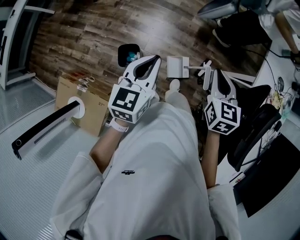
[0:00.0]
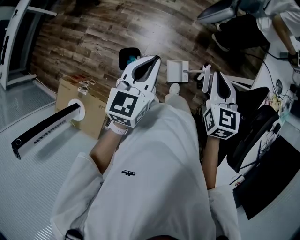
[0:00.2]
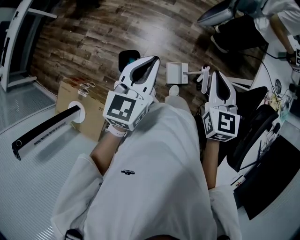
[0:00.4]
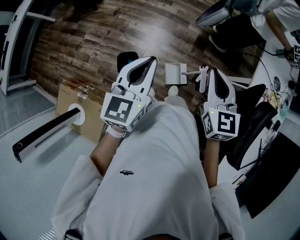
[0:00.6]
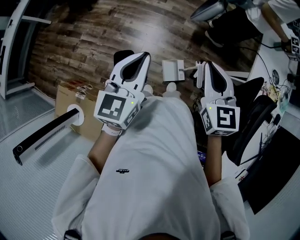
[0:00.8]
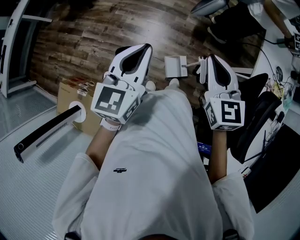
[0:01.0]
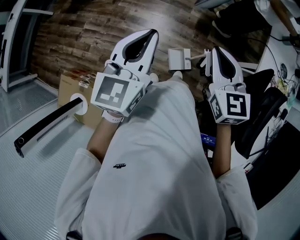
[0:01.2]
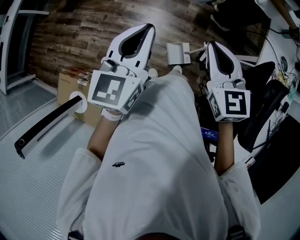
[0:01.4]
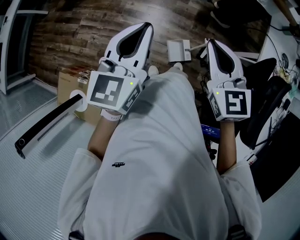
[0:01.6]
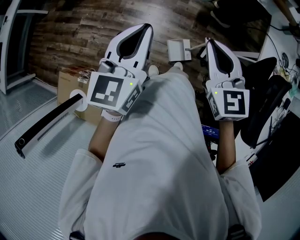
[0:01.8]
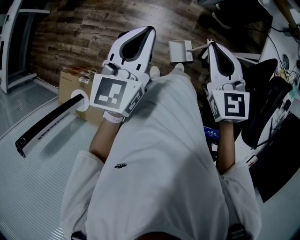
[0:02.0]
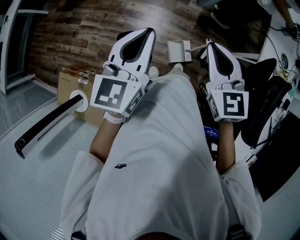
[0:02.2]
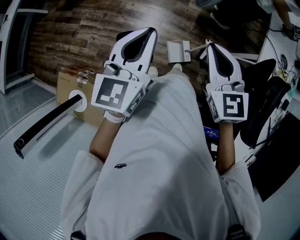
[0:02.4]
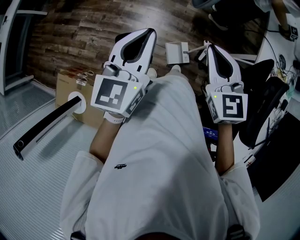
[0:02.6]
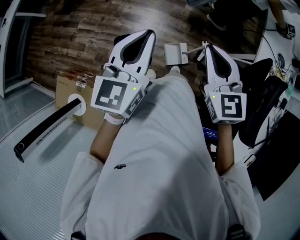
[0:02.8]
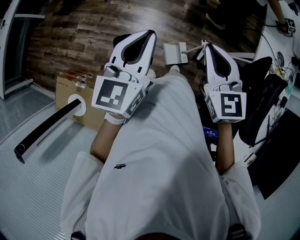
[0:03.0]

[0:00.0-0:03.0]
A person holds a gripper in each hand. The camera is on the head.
0.0 to 1.6 s: The right gripper is displaced upward and to the left by approximately 10 cm, and rotates roughly 20 degrees. Meanwhile the left gripper goes about 10 cm upward.
1.6 to 3.0 s: The grippers make only small movements.

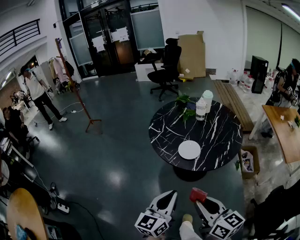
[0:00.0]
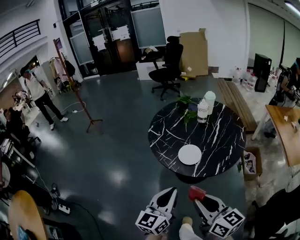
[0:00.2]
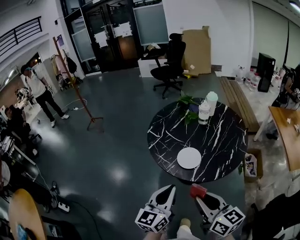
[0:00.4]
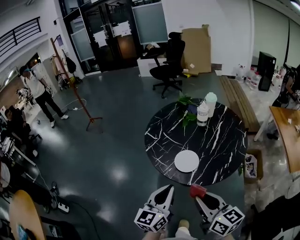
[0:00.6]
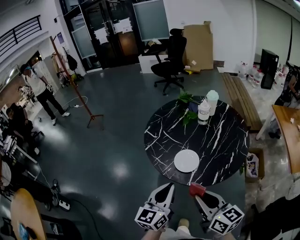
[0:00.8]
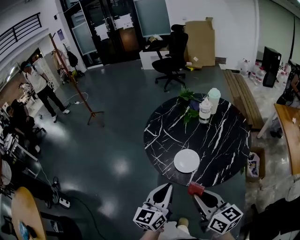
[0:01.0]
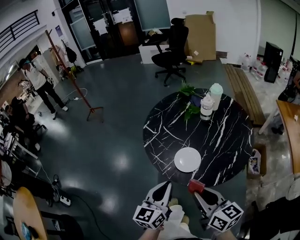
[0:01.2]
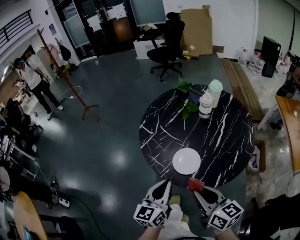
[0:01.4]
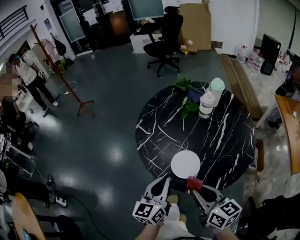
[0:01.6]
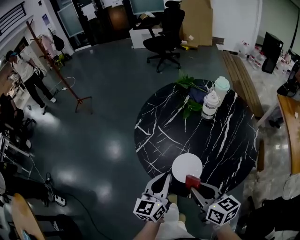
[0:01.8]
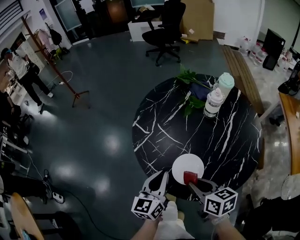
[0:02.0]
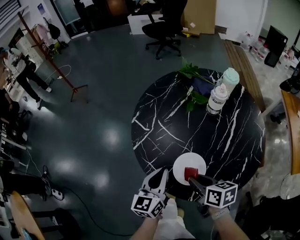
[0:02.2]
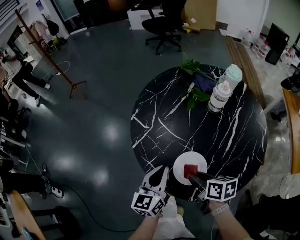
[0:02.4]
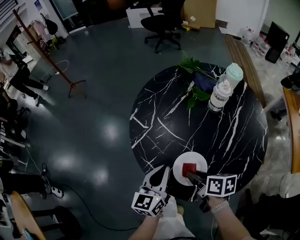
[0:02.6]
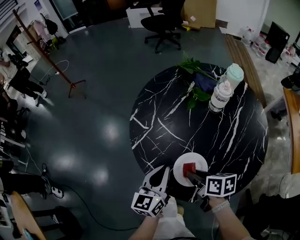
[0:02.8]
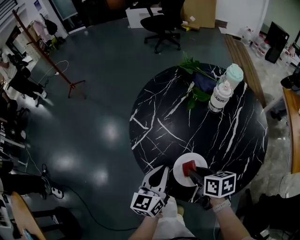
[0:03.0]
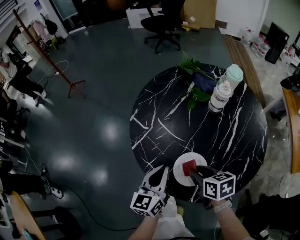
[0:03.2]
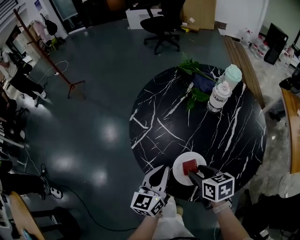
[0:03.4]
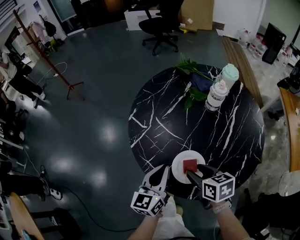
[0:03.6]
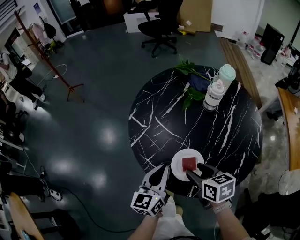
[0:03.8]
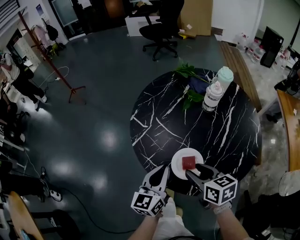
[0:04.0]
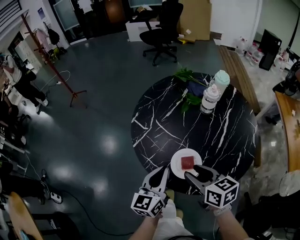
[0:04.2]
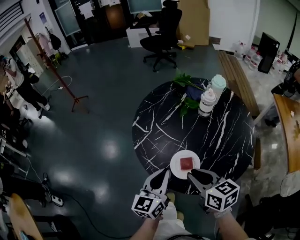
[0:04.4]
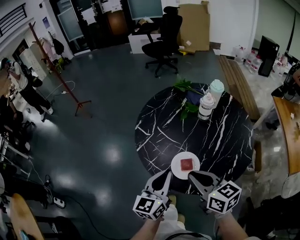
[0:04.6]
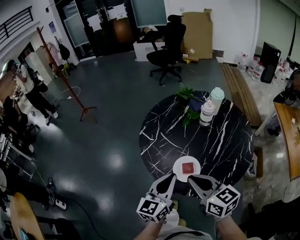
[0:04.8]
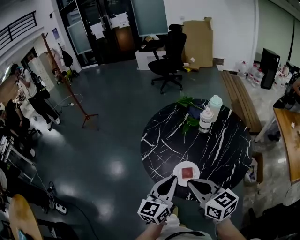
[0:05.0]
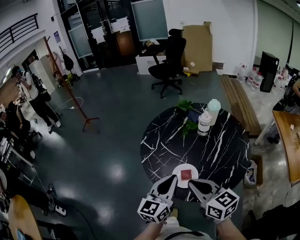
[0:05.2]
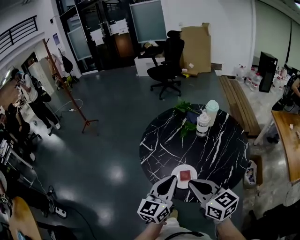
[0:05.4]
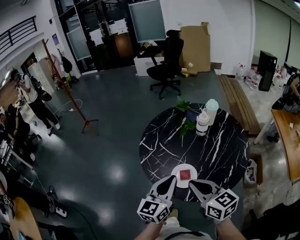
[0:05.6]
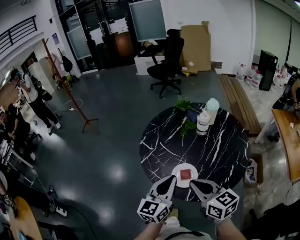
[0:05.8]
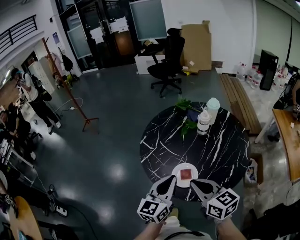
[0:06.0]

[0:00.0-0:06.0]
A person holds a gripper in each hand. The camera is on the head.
0.0 to 1.6 s: The two grippers go about 25 cm forward.
1.6 to 3.0 s: The right gripper goes approximately 20 cm downward and forward, and changes its angle by approximately 30 degrees. The left gripper travels forward and downward by roughly 15 cm.
3.0 to 4.4 s: Both grippers travel together upward and backward, about 10 cm. The right gripper turns by about 30 degrees, and opens and closes again.
4.4 to 6.0 s: The two grippers go some 10 cm upward.

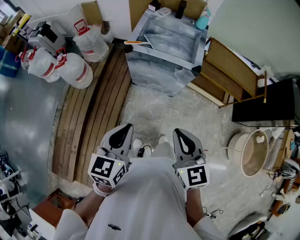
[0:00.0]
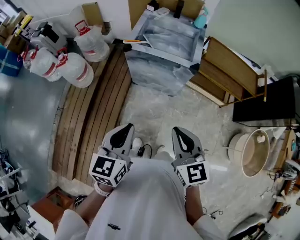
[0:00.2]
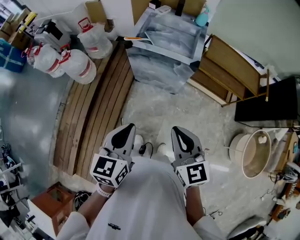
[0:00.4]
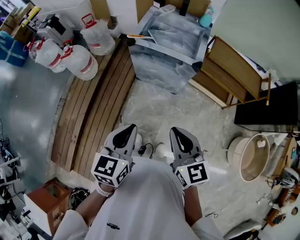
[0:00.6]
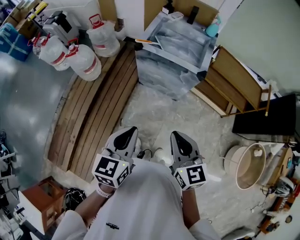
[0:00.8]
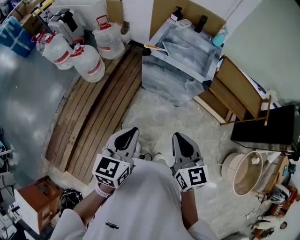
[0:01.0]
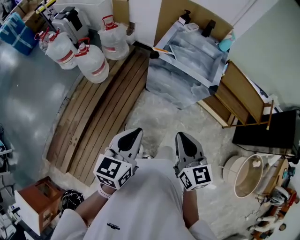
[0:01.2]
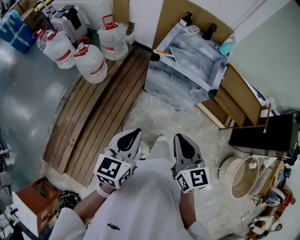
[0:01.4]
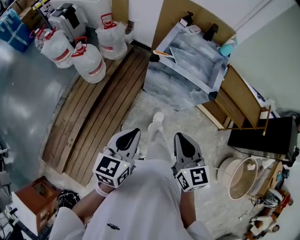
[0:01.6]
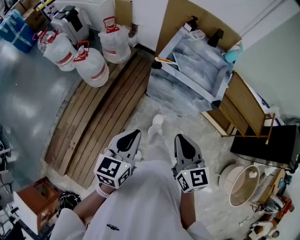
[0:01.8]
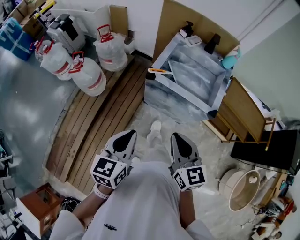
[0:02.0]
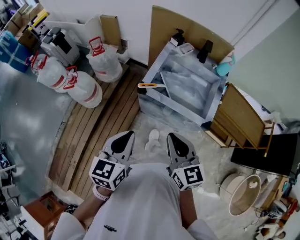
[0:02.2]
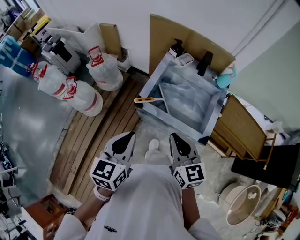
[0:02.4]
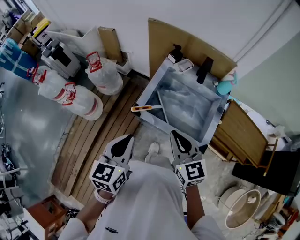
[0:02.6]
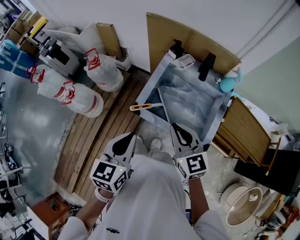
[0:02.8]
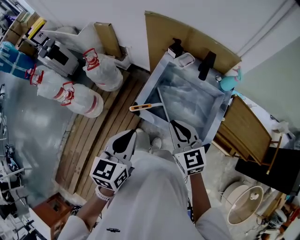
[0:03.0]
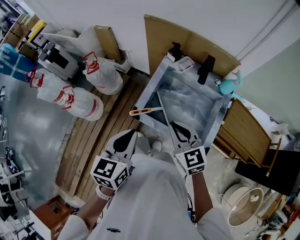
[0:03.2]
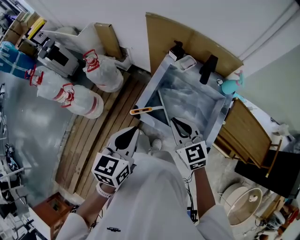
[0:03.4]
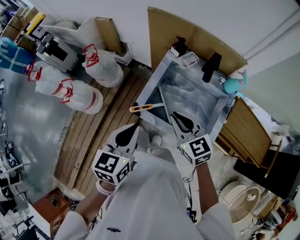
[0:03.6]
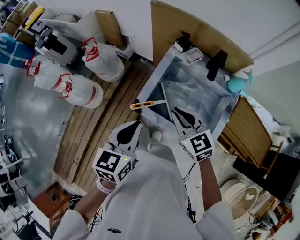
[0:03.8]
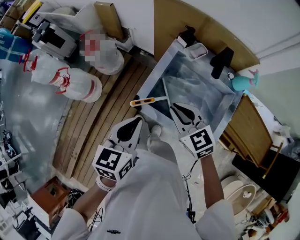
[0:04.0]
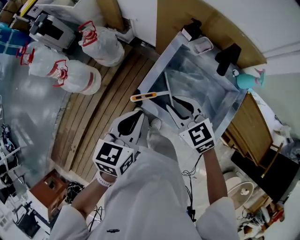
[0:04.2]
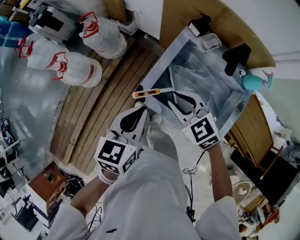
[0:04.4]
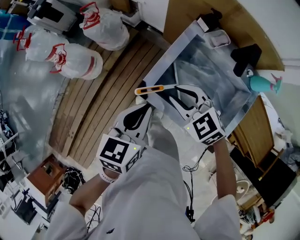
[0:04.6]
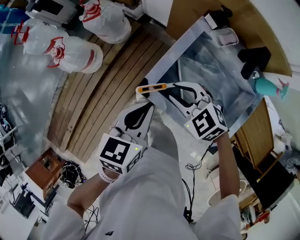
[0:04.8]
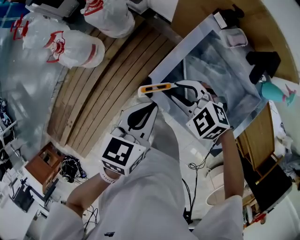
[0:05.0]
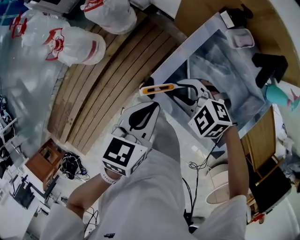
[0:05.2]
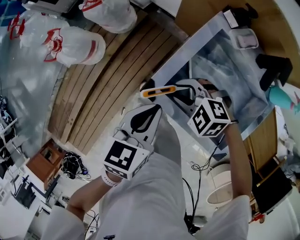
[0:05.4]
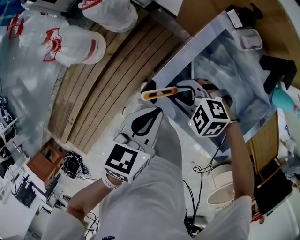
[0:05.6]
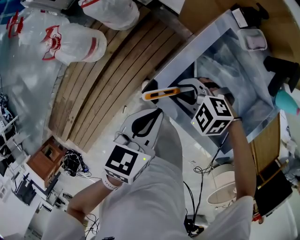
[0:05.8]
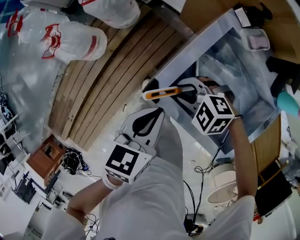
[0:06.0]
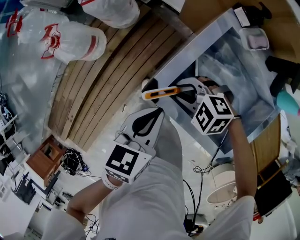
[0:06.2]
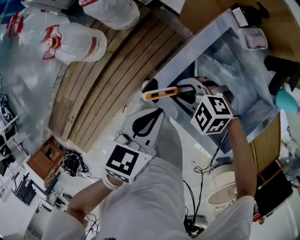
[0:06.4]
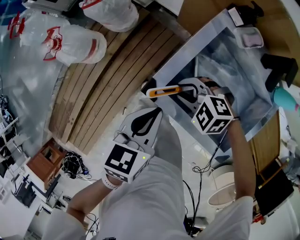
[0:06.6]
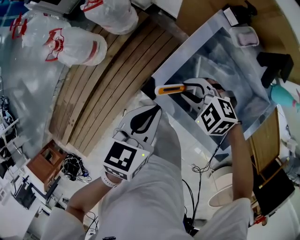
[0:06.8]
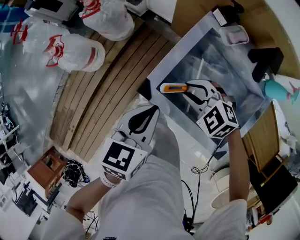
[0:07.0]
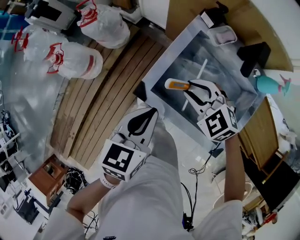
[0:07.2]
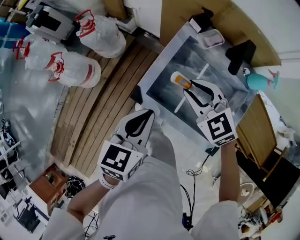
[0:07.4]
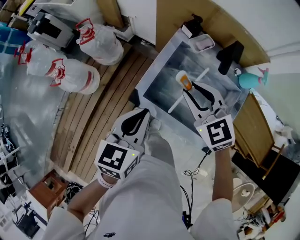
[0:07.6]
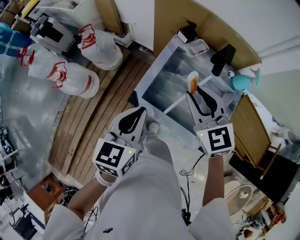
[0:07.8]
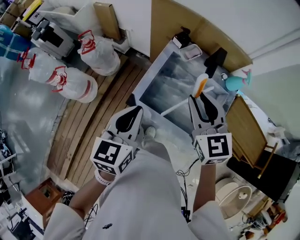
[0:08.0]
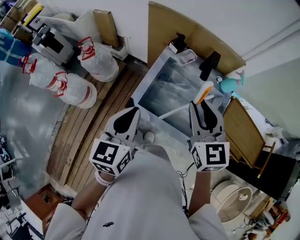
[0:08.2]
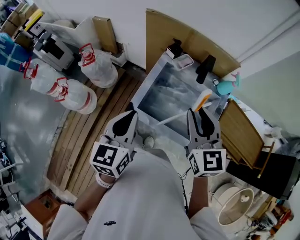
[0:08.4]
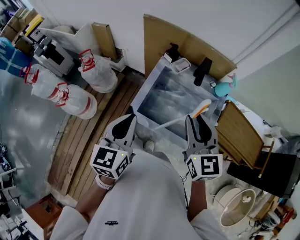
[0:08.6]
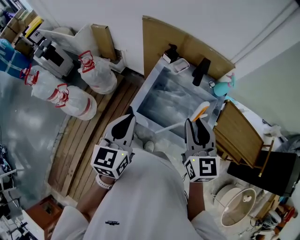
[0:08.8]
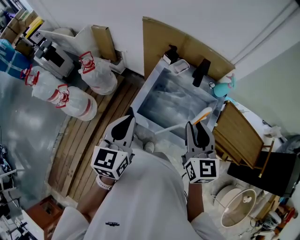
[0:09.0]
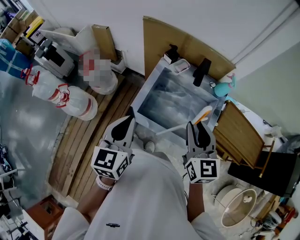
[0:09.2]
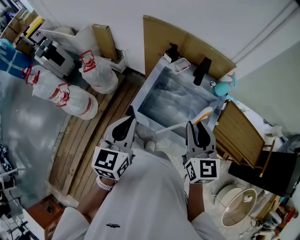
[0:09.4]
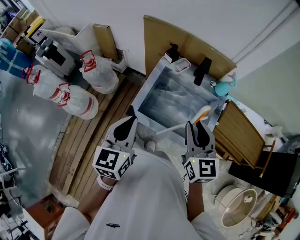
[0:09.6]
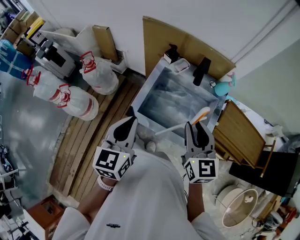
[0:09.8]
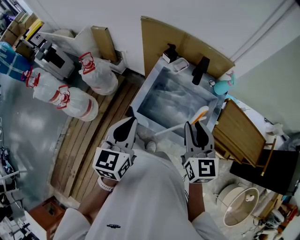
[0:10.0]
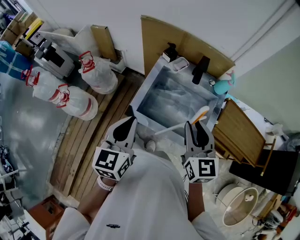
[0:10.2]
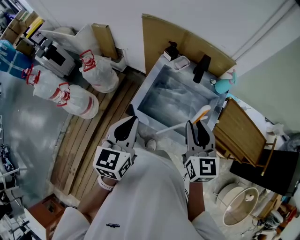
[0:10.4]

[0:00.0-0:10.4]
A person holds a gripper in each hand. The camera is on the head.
0.0 to 1.4 s: Both grippers move to the left, roughly 5 cm.
1.4 to 3.0 s: The pair of grippers is taken forward, about 40 cm.
3.0 to 4.4 s: The grippers both shift forward and downward by roughly 15 cm. The right gripper rotates approximately 30 degrees.
4.4 to 6.0 s: The grippers both shift downward by approximately 15 cm. The right gripper changes its angle by roughly 50 degrees.
6.0 to 7.4 s: The left gripper goes approximately 10 cm upward, while the right gripper travels upward by roughly 15 cm, and changes its angle by about 50 degrees.
7.4 to 9.0 s: The left gripper travels upward by some 15 cm; the right gripper moves upward, backward and to the right, some 25 cm, and turns by about 50 degrees.
9.0 to 10.4 s: The grippers stay close to where they were, moving slightly.

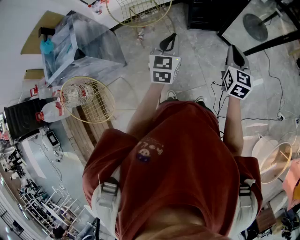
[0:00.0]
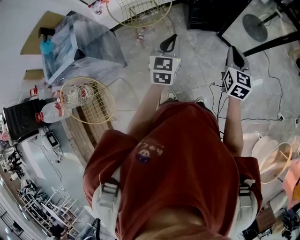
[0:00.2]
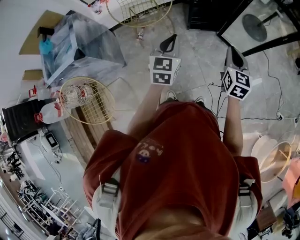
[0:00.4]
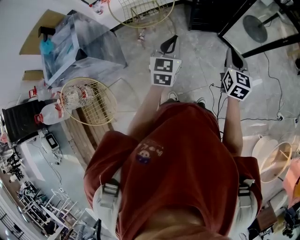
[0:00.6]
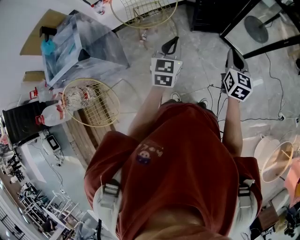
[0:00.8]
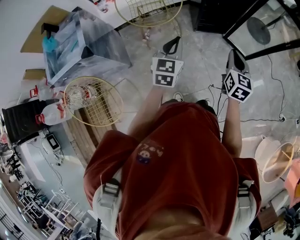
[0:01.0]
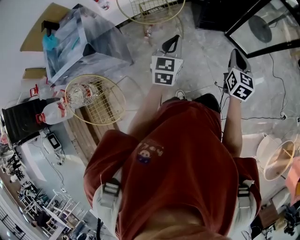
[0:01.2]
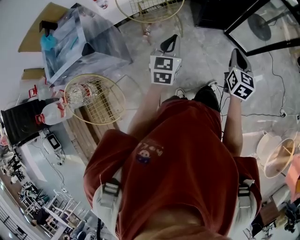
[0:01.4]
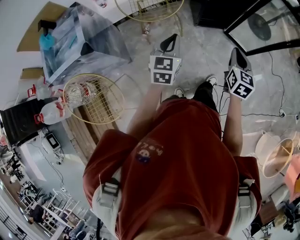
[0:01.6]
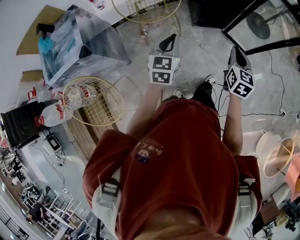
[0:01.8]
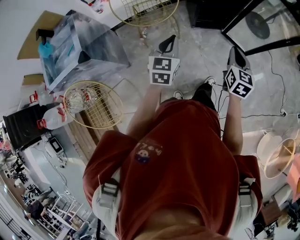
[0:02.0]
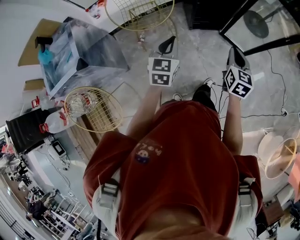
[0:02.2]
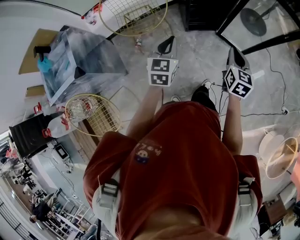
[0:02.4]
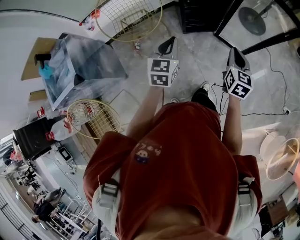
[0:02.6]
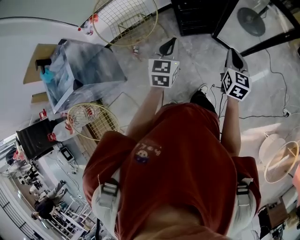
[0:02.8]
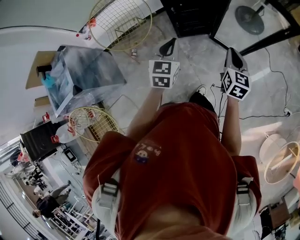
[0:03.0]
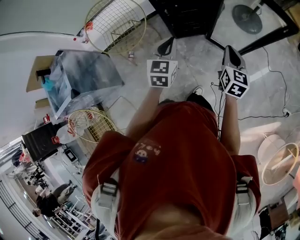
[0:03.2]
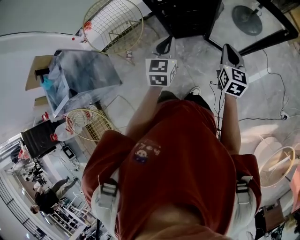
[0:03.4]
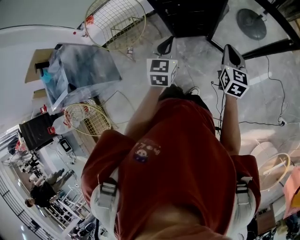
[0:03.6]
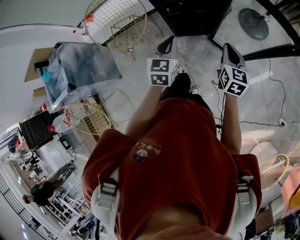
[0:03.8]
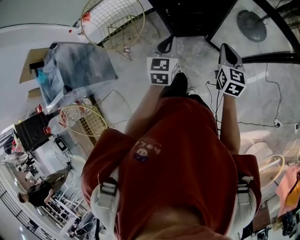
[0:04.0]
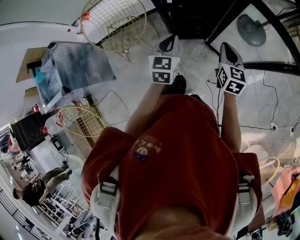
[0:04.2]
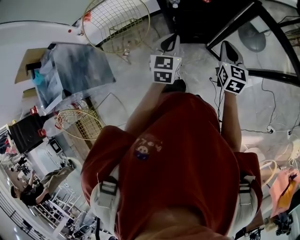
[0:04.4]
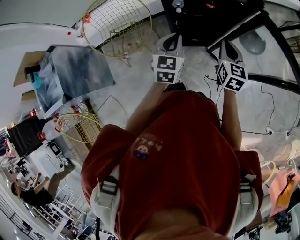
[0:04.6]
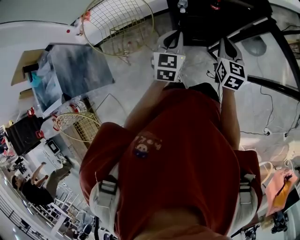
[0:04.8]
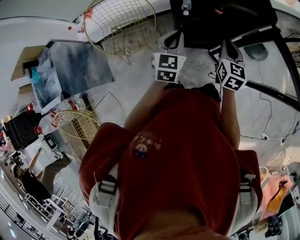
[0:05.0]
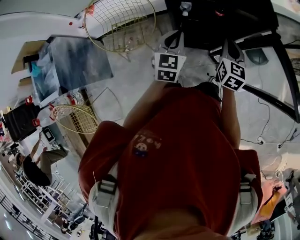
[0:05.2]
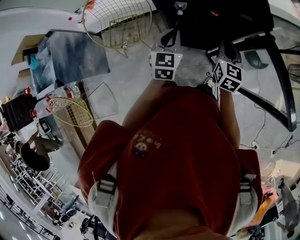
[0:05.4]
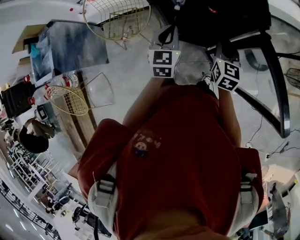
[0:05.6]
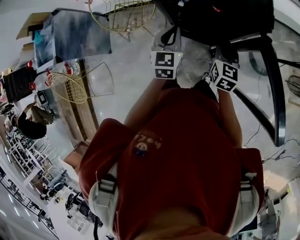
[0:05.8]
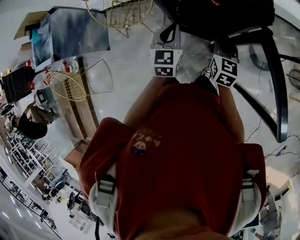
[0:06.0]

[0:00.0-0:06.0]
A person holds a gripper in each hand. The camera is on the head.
0.0 to 1.6 s: The grippers both shift to the left by roughly 10 cm.
1.6 to 3.0 s: The grippers both shift to the right and forward by some 30 cm.
3.0 to 4.4 s: The two grippers go some 20 cm forward.
4.4 to 6.0 s: The right gripper goes some 15 cm forward and downward; the left gripper shifts about 10 cm forward and to the right, and rotates roughly 20 degrees.
